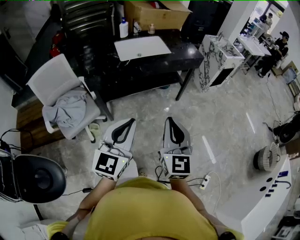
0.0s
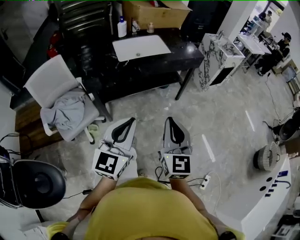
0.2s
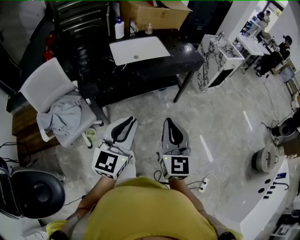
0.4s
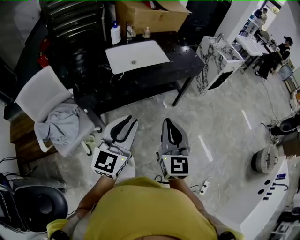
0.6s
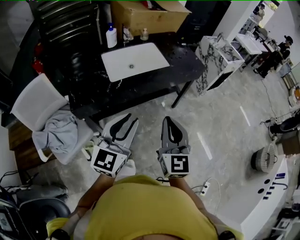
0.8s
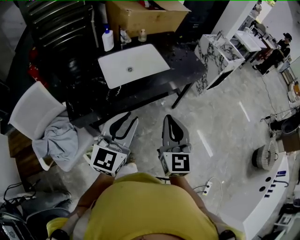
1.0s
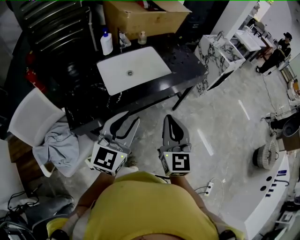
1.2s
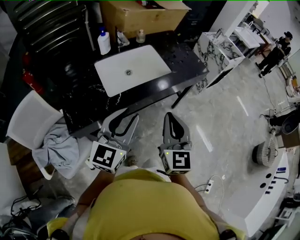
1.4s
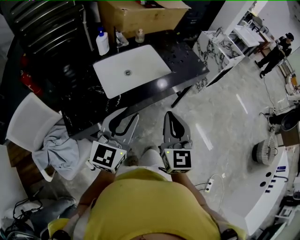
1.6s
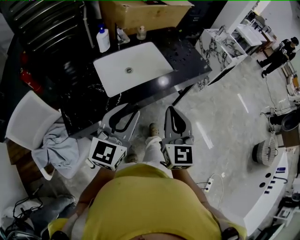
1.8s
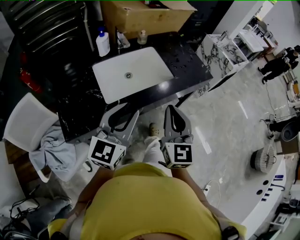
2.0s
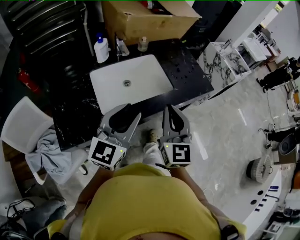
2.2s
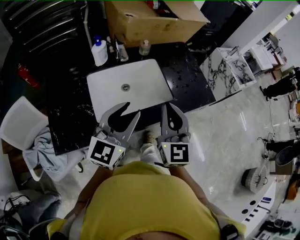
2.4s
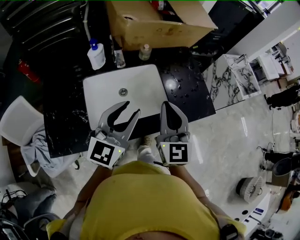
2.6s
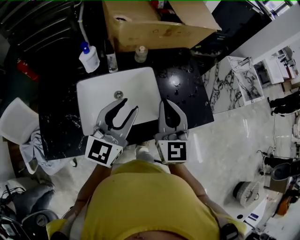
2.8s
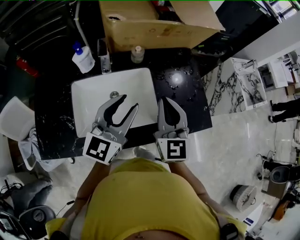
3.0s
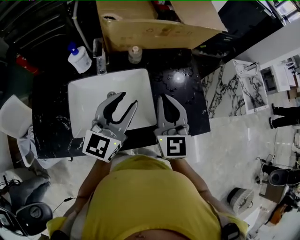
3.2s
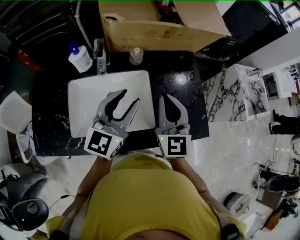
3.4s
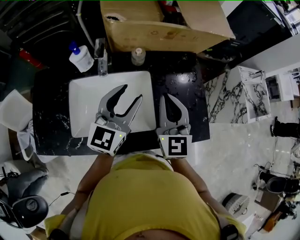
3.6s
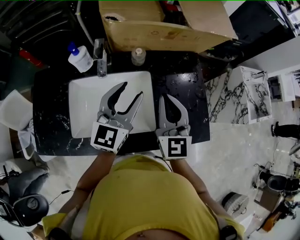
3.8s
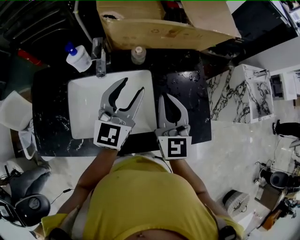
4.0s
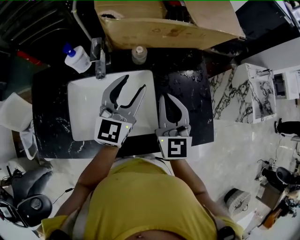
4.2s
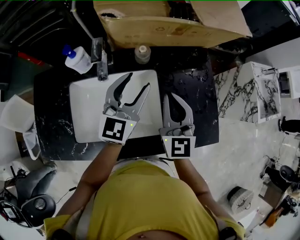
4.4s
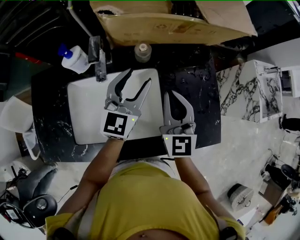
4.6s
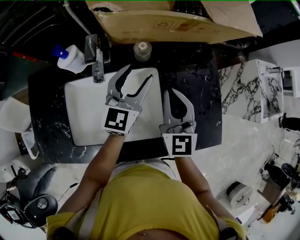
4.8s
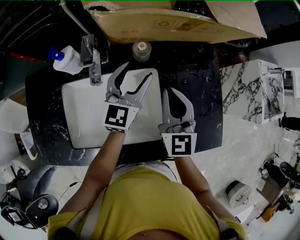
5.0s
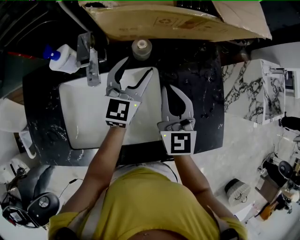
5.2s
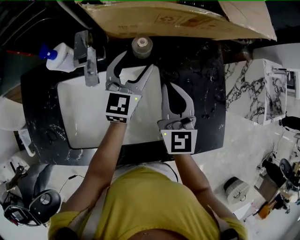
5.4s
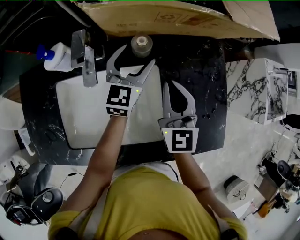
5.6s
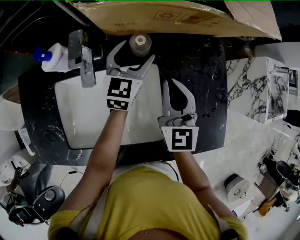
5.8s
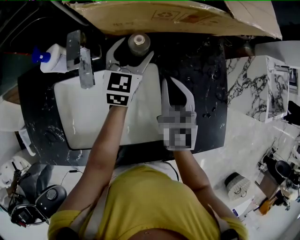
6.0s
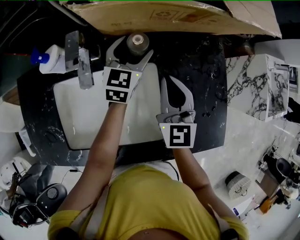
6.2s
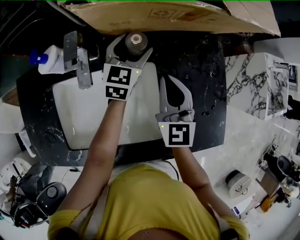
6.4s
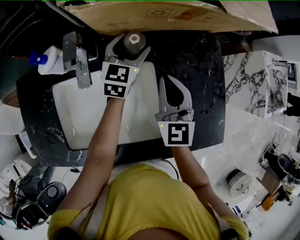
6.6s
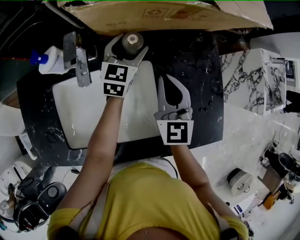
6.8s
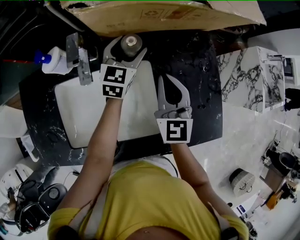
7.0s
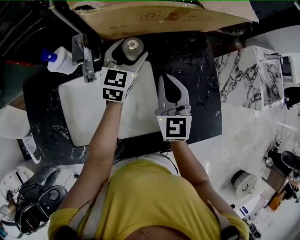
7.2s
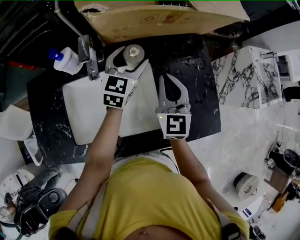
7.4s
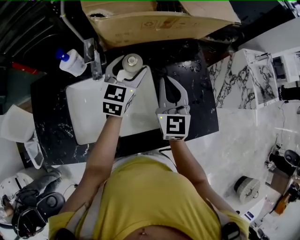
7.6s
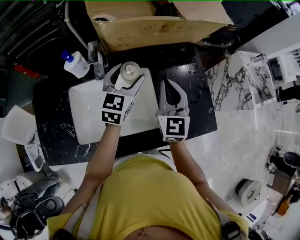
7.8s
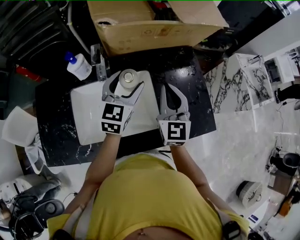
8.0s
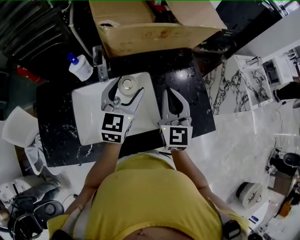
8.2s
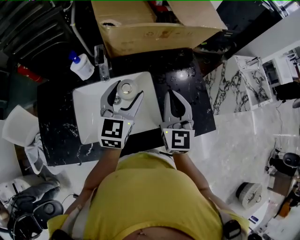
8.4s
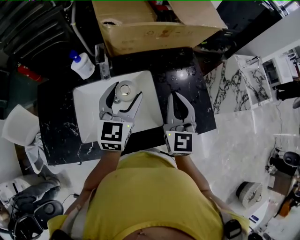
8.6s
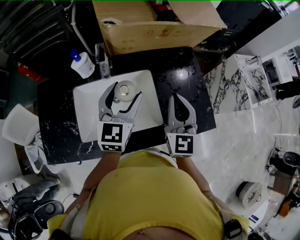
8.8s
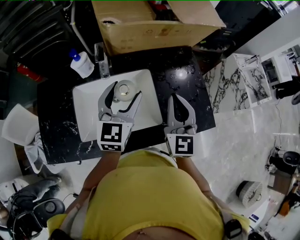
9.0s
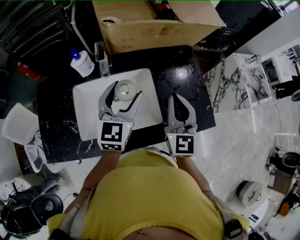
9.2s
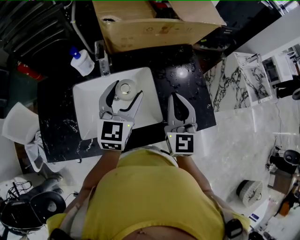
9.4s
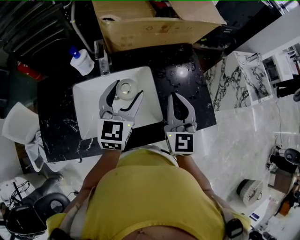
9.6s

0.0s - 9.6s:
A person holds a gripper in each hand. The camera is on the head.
0.0s - 1.6s: The two grippers go about 35 cm forward.
1.6s - 3.2s: Both grippers are carried forward, about 40 cm. The right gripper swivels about 20 degrees.
3.2s - 4.8s: The left gripper goes roughly 20 cm forward and downward, while the right gripper goes approximately 10 cm forward and downward.
4.8s - 6.4s: The right gripper moves downward and forward, about 10 cm. The left gripper shifts roughly 15 cm forward and downward.
6.4s - 8.0s: The left gripper goes about 20 cm backward and upward, while the right gripper shifts about 15 cm upward and backward.
8.0s - 9.6s: The grippers both shift backward by about 5 cm.

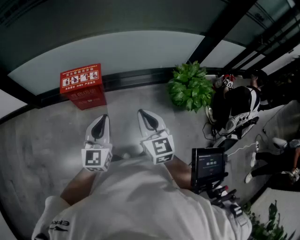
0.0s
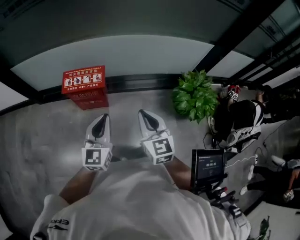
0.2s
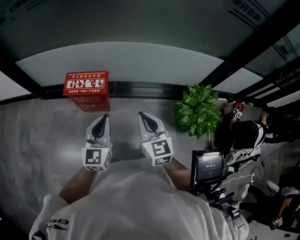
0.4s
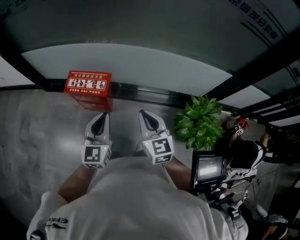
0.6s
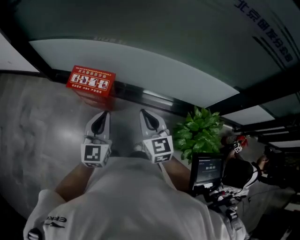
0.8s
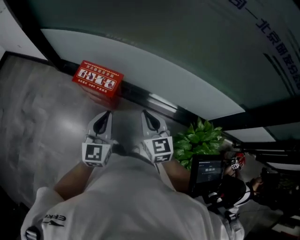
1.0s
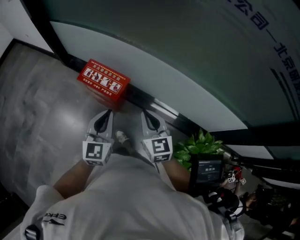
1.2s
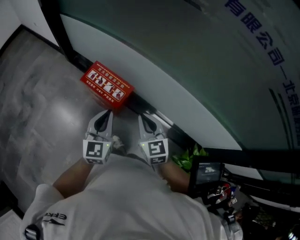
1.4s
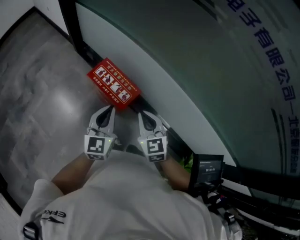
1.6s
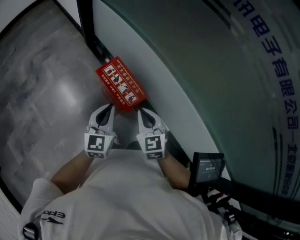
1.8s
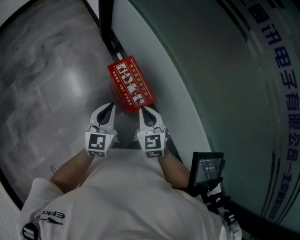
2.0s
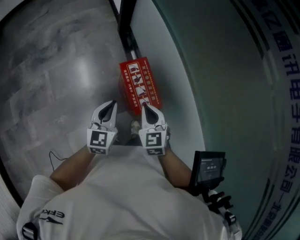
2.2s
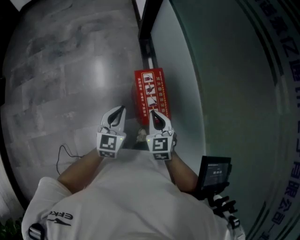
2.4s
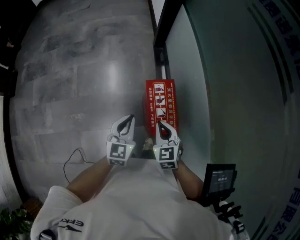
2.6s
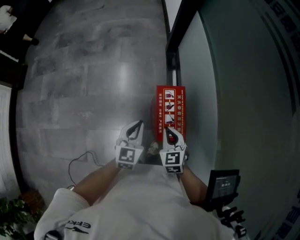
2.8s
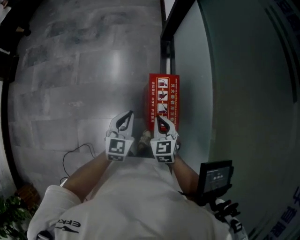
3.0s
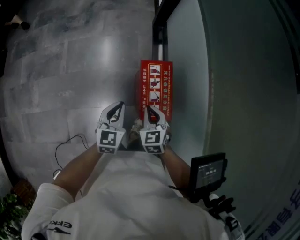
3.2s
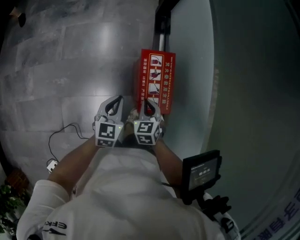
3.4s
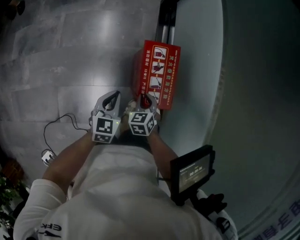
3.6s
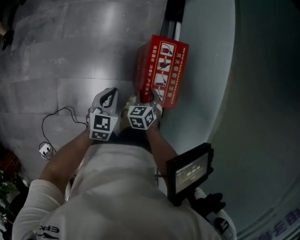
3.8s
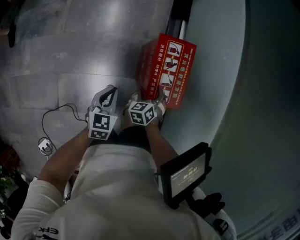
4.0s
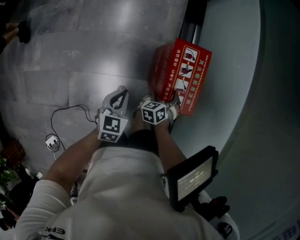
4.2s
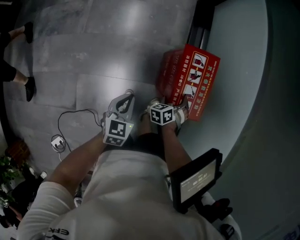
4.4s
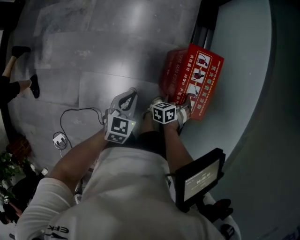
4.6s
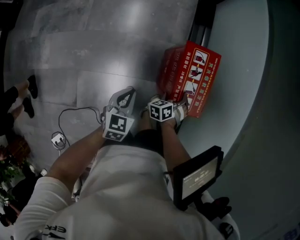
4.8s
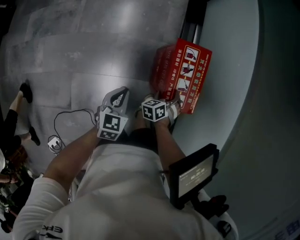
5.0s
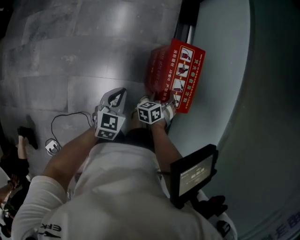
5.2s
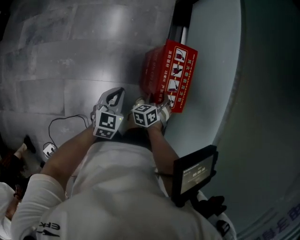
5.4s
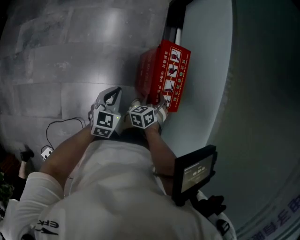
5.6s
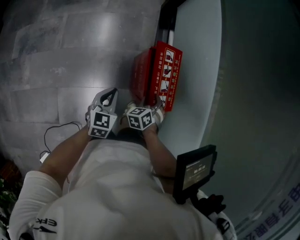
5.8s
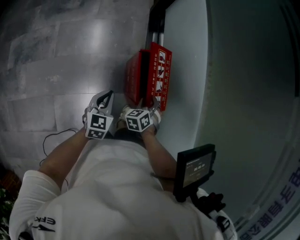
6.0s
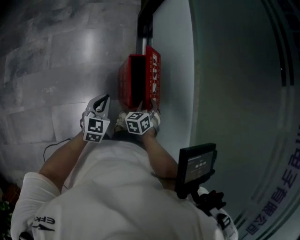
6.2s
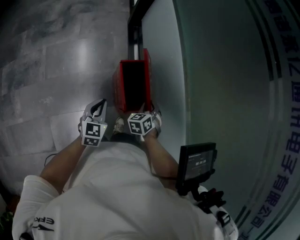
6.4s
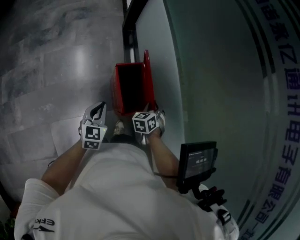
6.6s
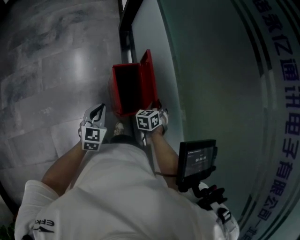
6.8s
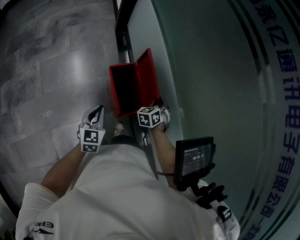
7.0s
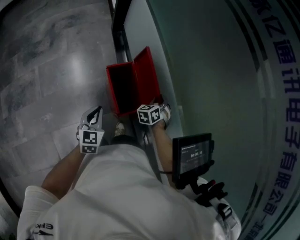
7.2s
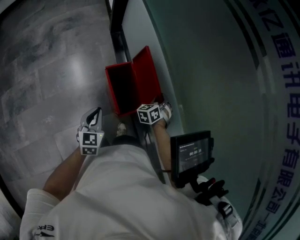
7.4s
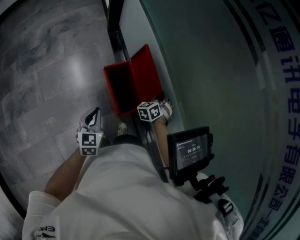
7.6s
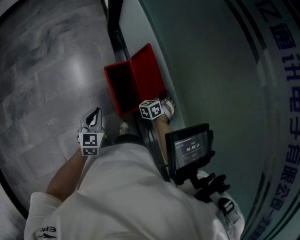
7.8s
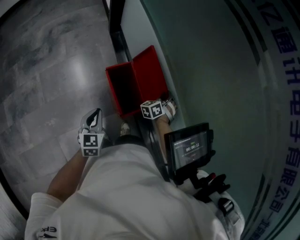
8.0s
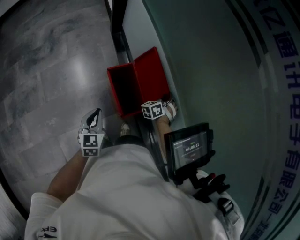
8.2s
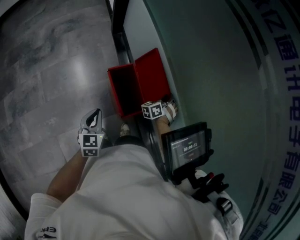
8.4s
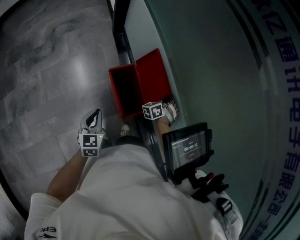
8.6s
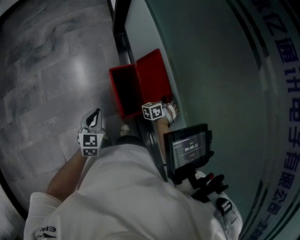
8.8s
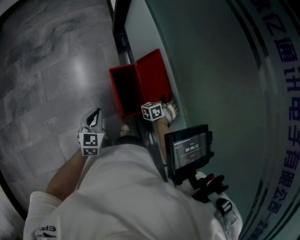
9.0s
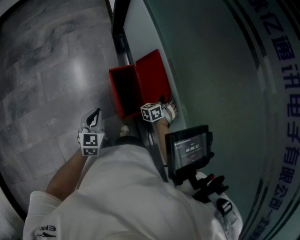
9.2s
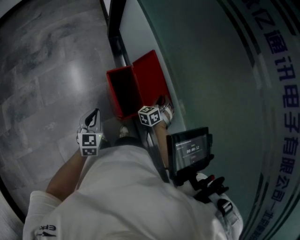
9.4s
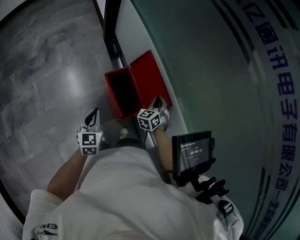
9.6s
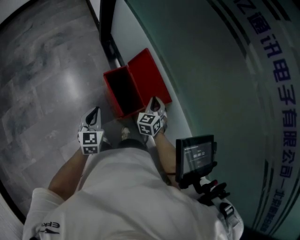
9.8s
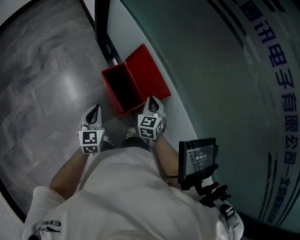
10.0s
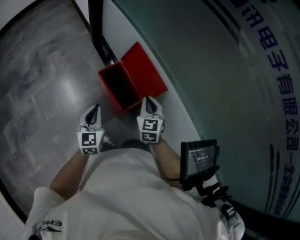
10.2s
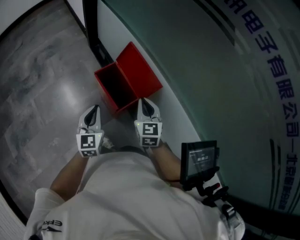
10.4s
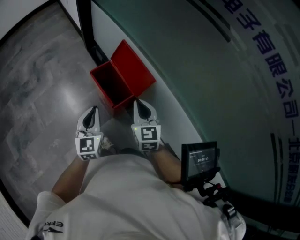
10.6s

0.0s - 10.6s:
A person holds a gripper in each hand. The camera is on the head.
0.0s - 1.6s: The right gripper ends up some 40 cm from where it was, and swivels roughly 50 degrees; the left gripper changes place by about 30 cm, and changes its angle by about 50 degrees.
1.6s - 3.0s: The left gripper shifts by approximately 15 cm, and swivels roughly 50 degrees. Meanwhile the right gripper moves about 20 cm, and changes its angle by some 40 degrees.
3.0s - 4.6s: The left gripper goes roughly 15 cm downward, and changes its angle by some 20 degrees. The right gripper shifts about 25 cm downward, rotates approximately 50 degrees, and opens up.
4.6s - 6.0s: The left gripper shifts by roughly 5 cm. The right gripper goes approximately 15 cm upward, and closes its fingers.
6.0s - 7.6s: The left gripper travels upward by about 5 cm. Meanwhile the right gripper moves to the right and forward, about 20 cm, and swivels some 20 degrees.
7.6s - 9.0s: The grippers make only small movements.
9.0s - 10.6s: The left gripper heads upward, backward and to the right, covering approximately 15 cm, and changes its angle by roughly 20 degrees, while the right gripper goes approximately 30 cm backward and upward, swivels about 60 degrees, and closes up.

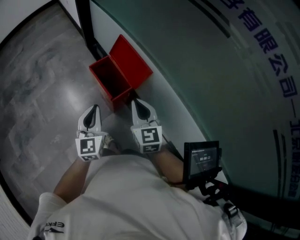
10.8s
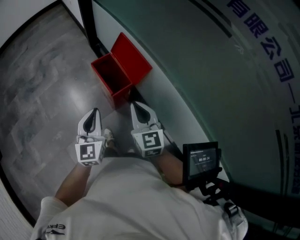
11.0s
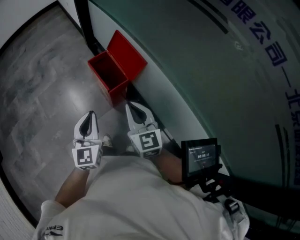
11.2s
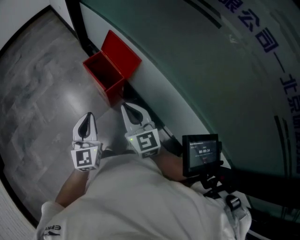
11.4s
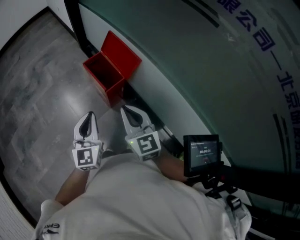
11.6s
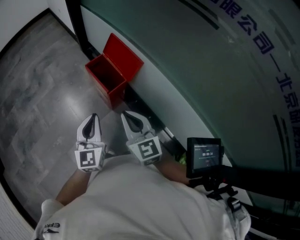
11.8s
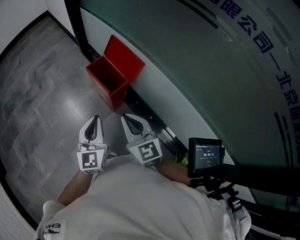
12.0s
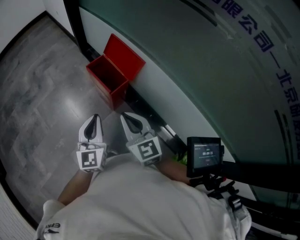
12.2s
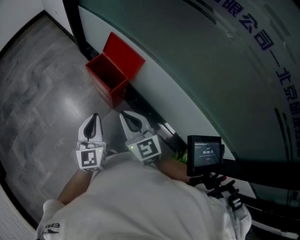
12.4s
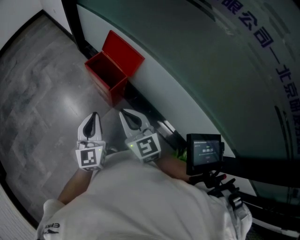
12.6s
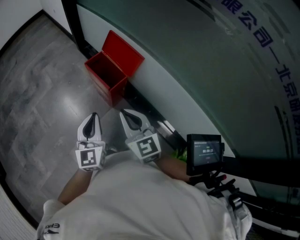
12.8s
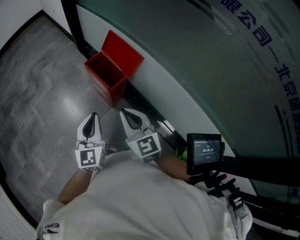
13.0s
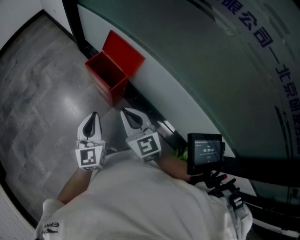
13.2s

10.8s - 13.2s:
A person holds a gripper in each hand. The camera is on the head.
10.8s - 12.0s: The right gripper travels backward and to the left by some 15 cm. The left gripper goes approximately 10 cm backward.
12.0s - 13.2s: The grippers make only small movements.

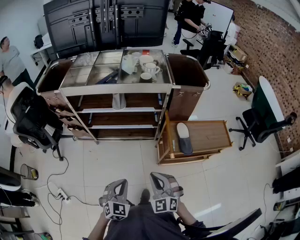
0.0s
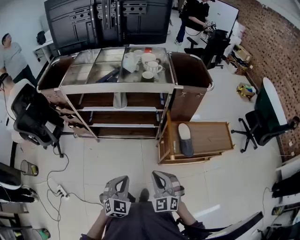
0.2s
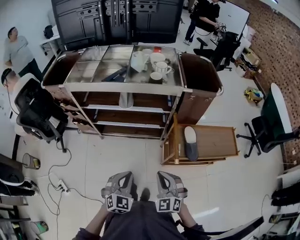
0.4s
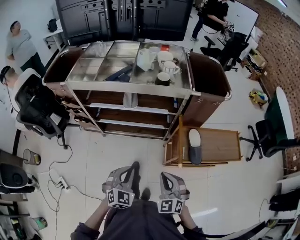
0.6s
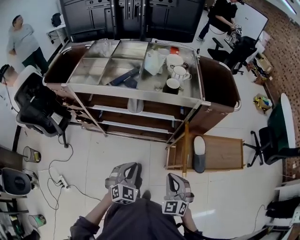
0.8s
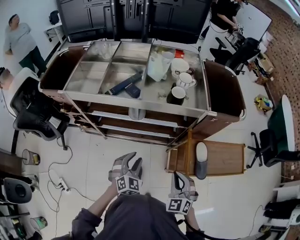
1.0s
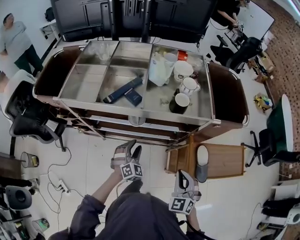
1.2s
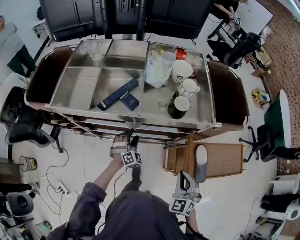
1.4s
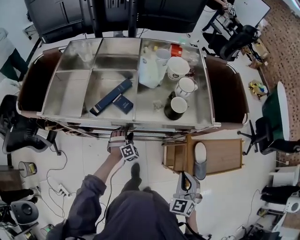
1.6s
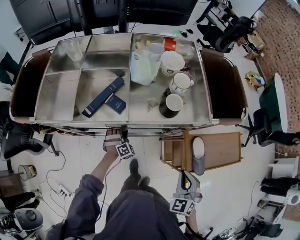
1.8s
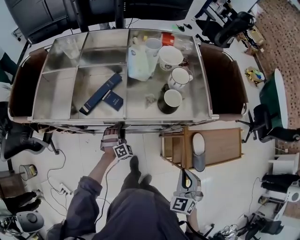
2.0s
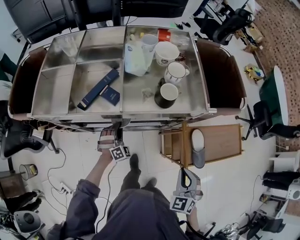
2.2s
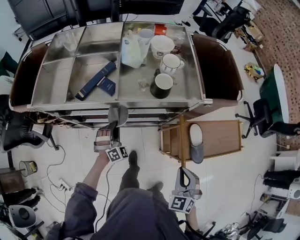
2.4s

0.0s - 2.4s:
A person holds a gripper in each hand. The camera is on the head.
0.0s - 1.2s: The left gripper is displaced forward by approximately 40 cm, and opens its fingers. The right gripper travels forward by roughly 25 cm.
1.2s - 2.4s: The right gripper heads to the right, covering some 5 cm. The left gripper moves forward, about 5 cm, and closes its fingers.
